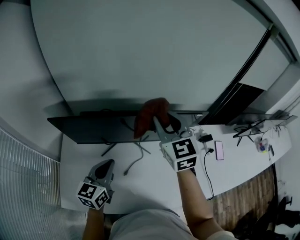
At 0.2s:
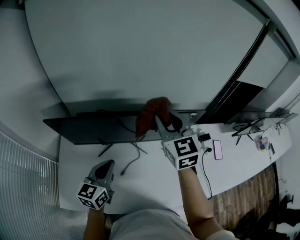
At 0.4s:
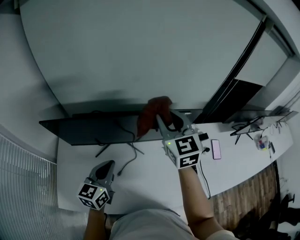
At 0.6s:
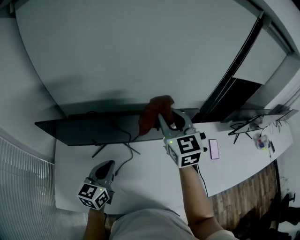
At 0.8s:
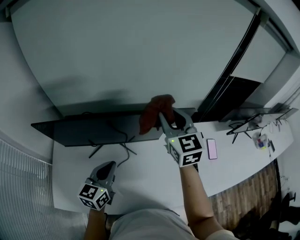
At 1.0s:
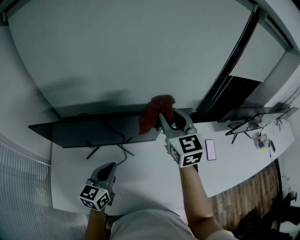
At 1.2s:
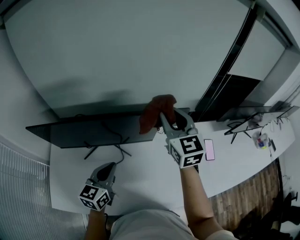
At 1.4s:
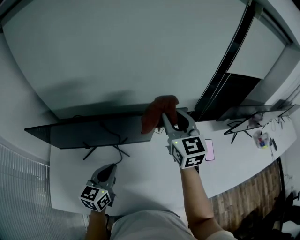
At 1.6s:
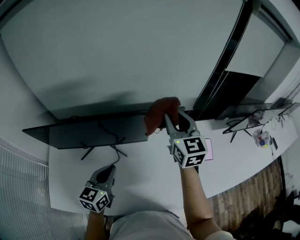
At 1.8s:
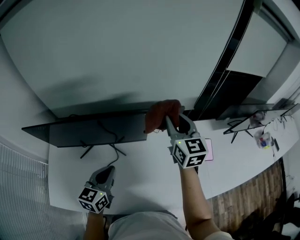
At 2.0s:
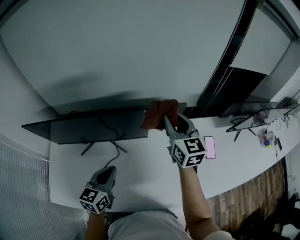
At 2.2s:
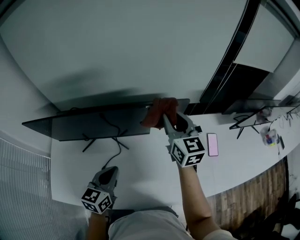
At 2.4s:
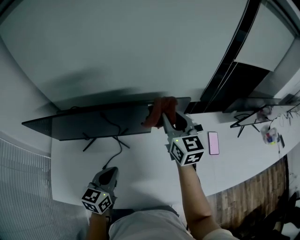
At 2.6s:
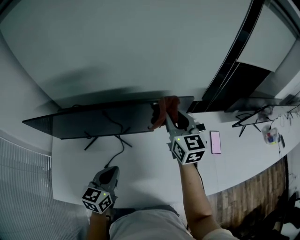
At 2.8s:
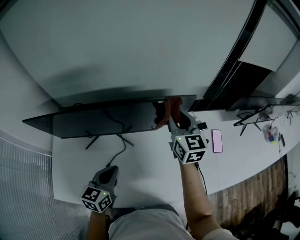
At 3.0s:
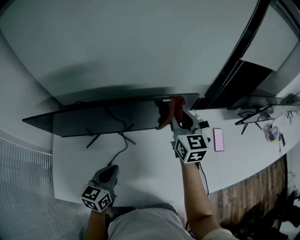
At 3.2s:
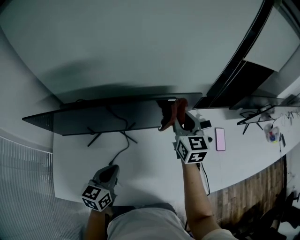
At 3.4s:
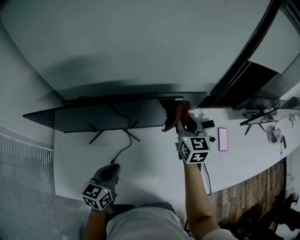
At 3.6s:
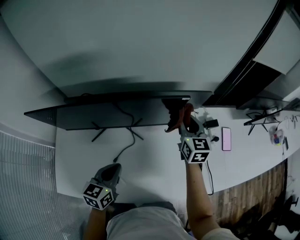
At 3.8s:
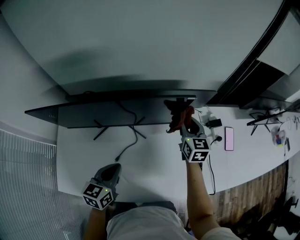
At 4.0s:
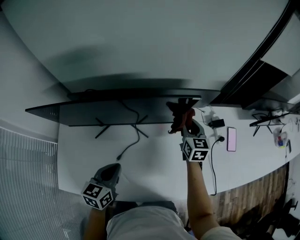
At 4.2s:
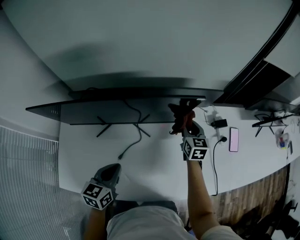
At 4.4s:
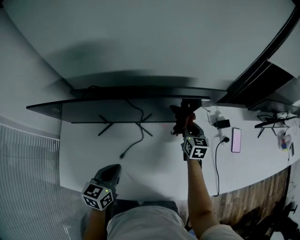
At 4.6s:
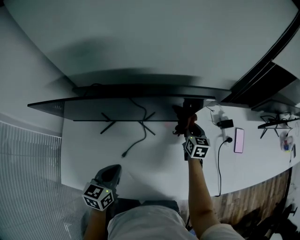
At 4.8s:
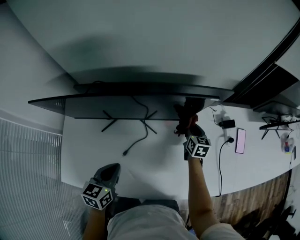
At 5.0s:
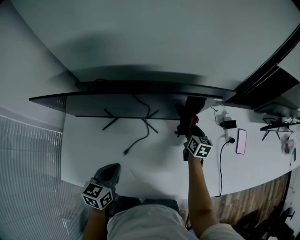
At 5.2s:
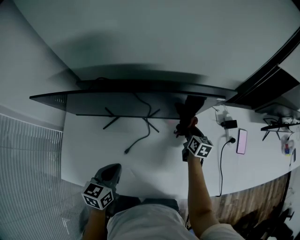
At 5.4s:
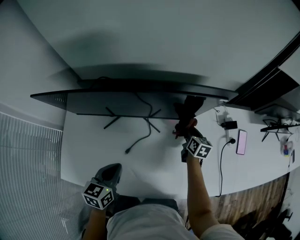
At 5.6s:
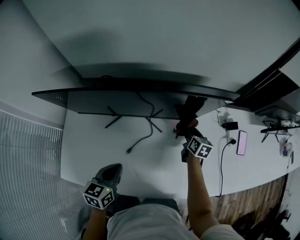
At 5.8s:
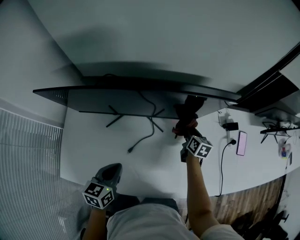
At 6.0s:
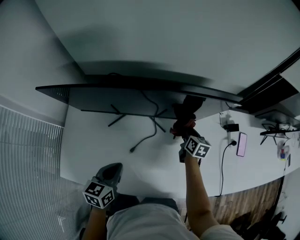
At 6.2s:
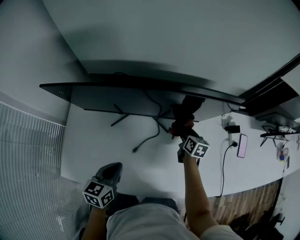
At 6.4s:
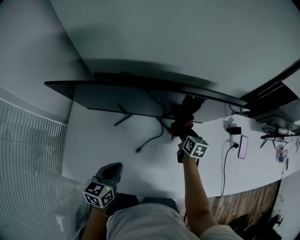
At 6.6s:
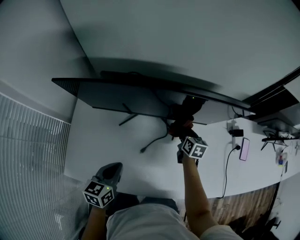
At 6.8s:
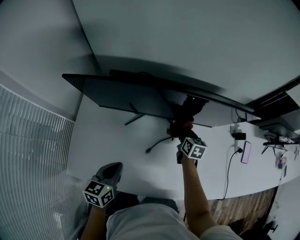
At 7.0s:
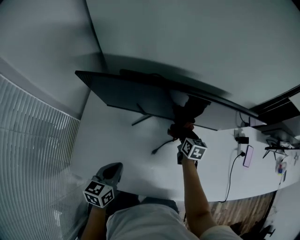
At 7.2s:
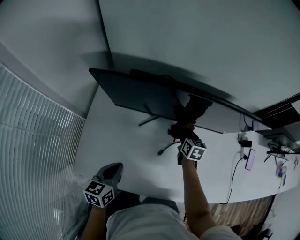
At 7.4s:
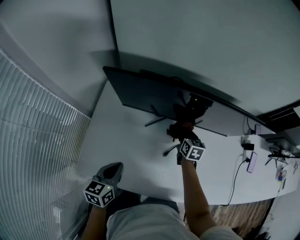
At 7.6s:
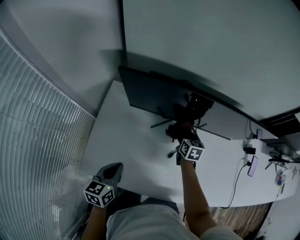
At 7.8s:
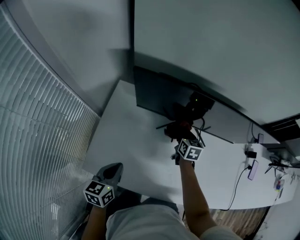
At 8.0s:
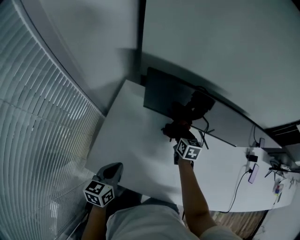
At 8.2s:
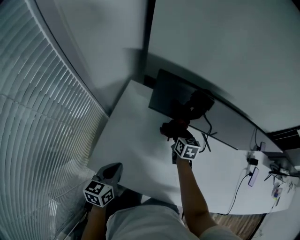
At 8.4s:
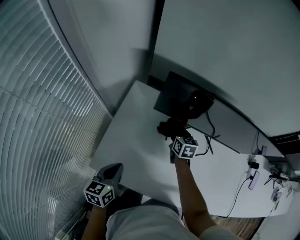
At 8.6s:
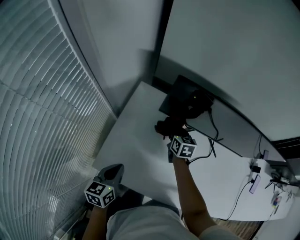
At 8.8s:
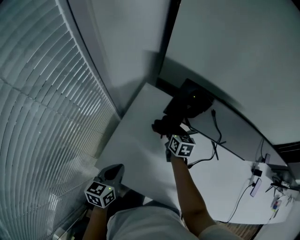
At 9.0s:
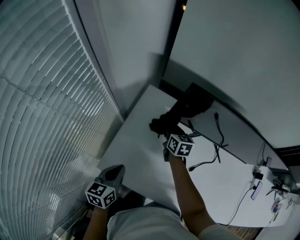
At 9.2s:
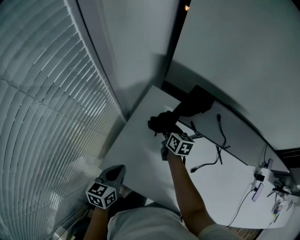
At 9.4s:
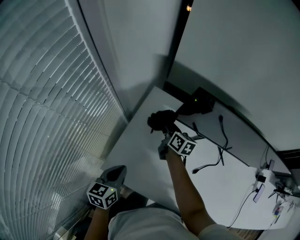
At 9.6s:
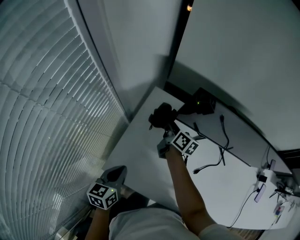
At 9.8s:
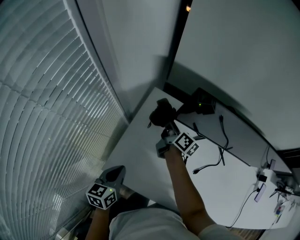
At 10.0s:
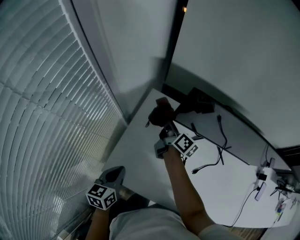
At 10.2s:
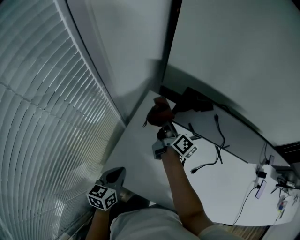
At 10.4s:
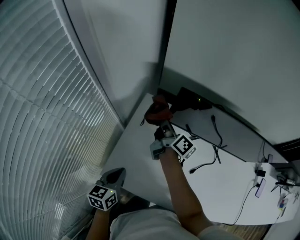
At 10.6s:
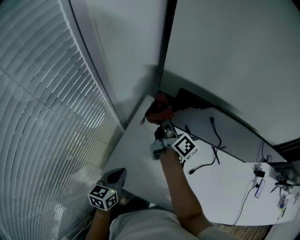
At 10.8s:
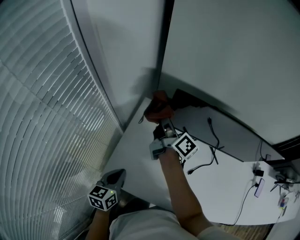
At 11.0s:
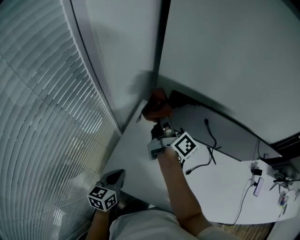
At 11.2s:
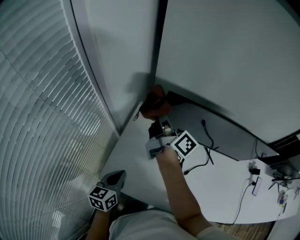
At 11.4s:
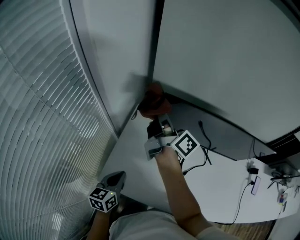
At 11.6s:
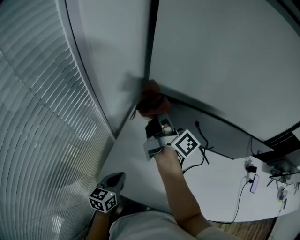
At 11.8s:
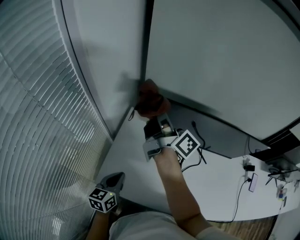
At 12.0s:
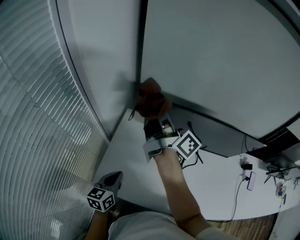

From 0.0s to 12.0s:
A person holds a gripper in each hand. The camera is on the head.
From 0.0s to 1.6s: The two grippers go roughly 20 cm to the right.
From 1.6s to 3.0s: The left gripper is displaced downward by about 5 cm; the right gripper is displaced downward by some 10 cm.
From 3.0s to 4.4s: The left gripper heads to the left, covering about 5 cm. Meanwhile the right gripper shifts about 25 cm downward, and turns by about 20 degrees.
From 4.4s to 6.0s: The left gripper goes roughly 5 cm to the left, while the right gripper shifts about 10 cm to the left and downward.
From 6.0s to 7.6s: Both grippers move to the left, some 25 cm.
From 7.6s to 9.0s: The right gripper heads to the left, covering approximately 25 cm. The left gripper is displaced to the left by roughly 10 cm.
From 9.0s to 10.4s: The right gripper shifts approximately 15 cm upward, and angles its fingers upward, by about 30 degrees.
From 10.4s to 12.0s: The right gripper is displaced upward by roughly 25 cm, and swivels roughly 30 degrees. The left gripper moves to the right, about 5 cm.

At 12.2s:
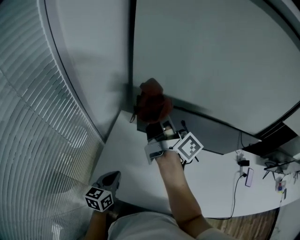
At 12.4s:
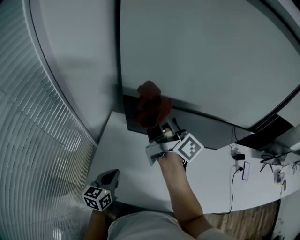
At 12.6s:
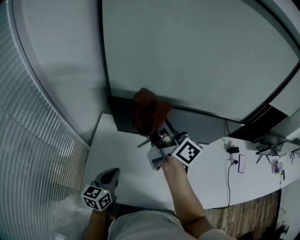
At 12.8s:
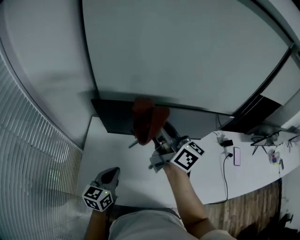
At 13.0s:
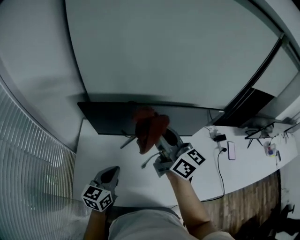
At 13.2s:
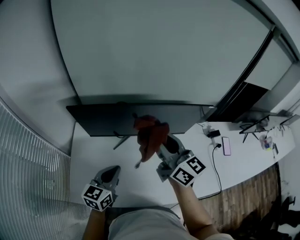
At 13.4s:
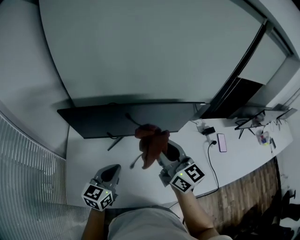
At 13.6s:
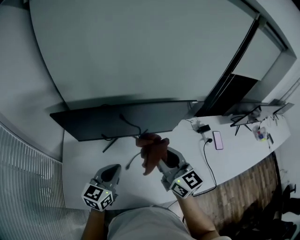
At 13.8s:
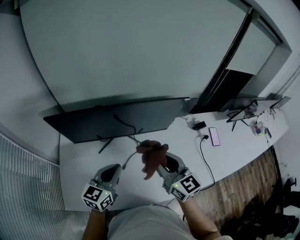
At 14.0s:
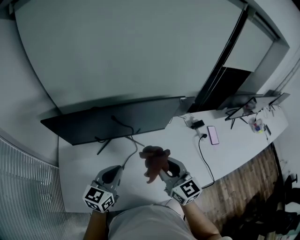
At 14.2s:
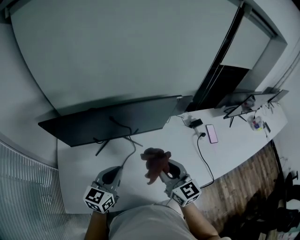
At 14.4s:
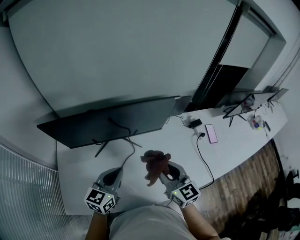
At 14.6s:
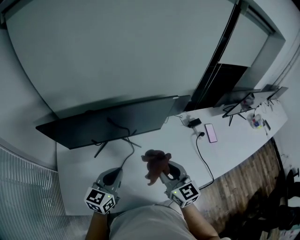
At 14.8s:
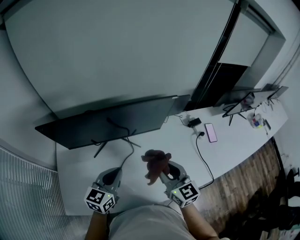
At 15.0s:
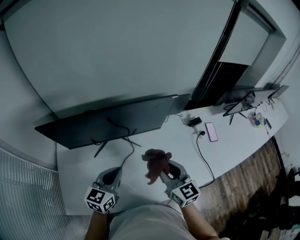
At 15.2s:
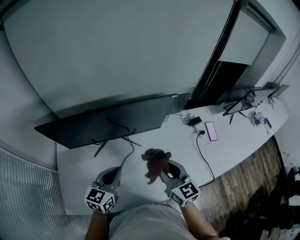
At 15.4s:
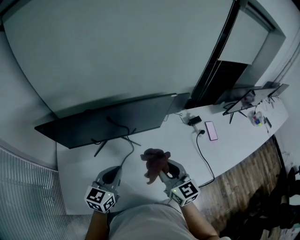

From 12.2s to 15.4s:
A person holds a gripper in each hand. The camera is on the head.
From 12.2s to 13.8s: The left gripper heads to the right, covering roughly 30 cm, and turns by approximately 30 degrees. The right gripper goes approximately 40 cm to the right and backward, and rolls counterclockwise, seen from behind, by about 60 degrees.
From 13.8s to 15.4s: The right gripper heads to the right, covering roughly 5 cm.

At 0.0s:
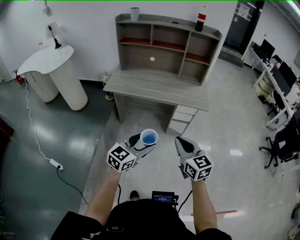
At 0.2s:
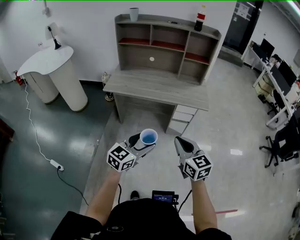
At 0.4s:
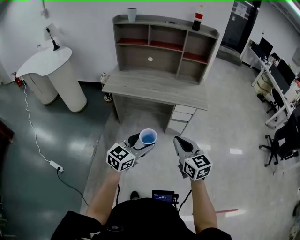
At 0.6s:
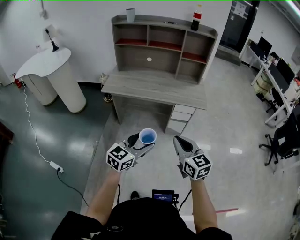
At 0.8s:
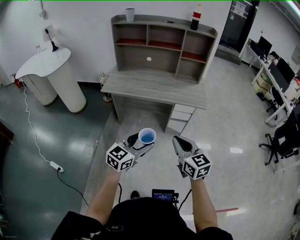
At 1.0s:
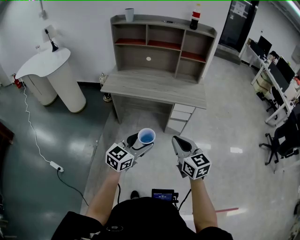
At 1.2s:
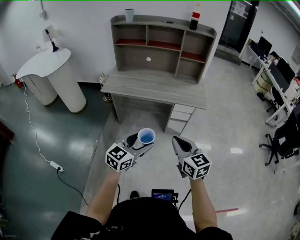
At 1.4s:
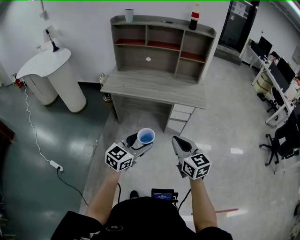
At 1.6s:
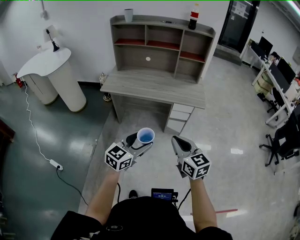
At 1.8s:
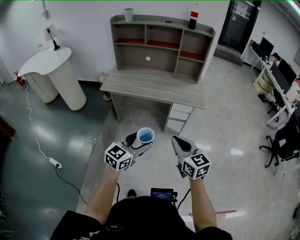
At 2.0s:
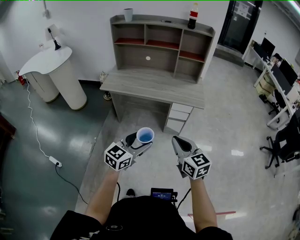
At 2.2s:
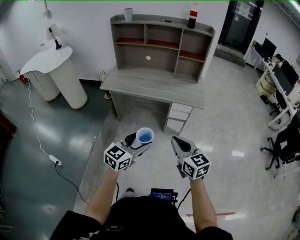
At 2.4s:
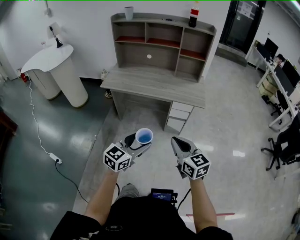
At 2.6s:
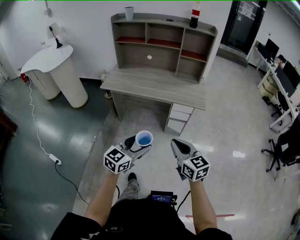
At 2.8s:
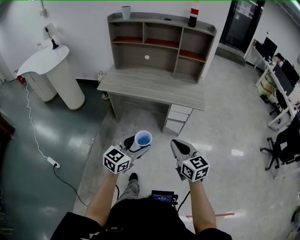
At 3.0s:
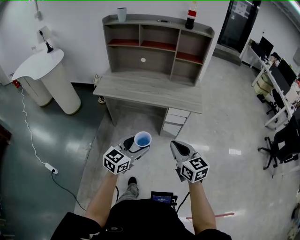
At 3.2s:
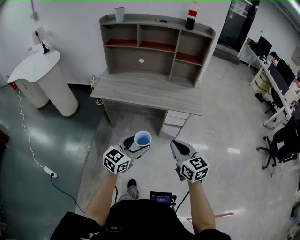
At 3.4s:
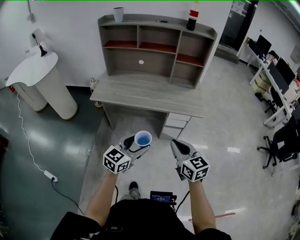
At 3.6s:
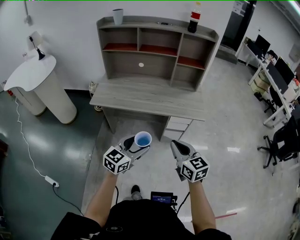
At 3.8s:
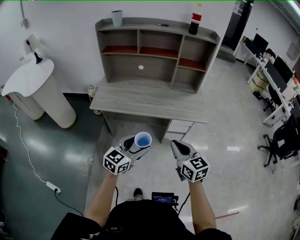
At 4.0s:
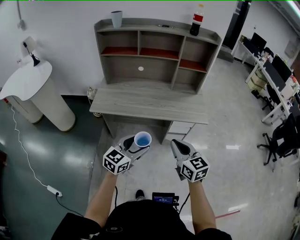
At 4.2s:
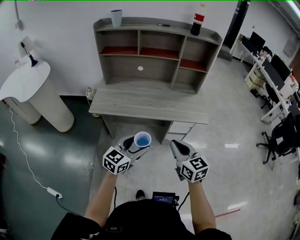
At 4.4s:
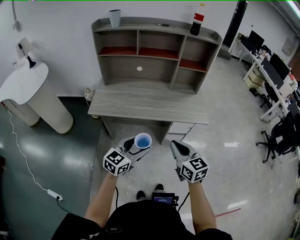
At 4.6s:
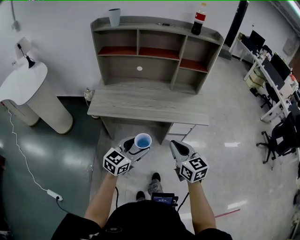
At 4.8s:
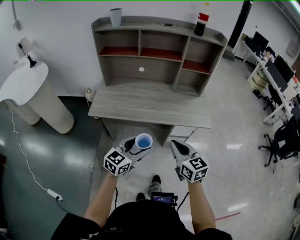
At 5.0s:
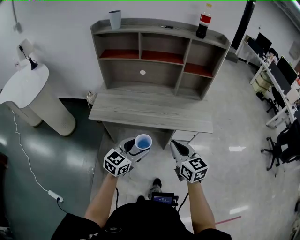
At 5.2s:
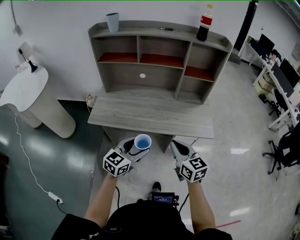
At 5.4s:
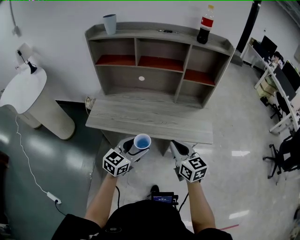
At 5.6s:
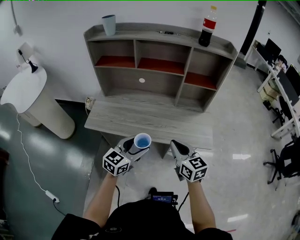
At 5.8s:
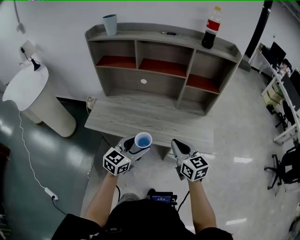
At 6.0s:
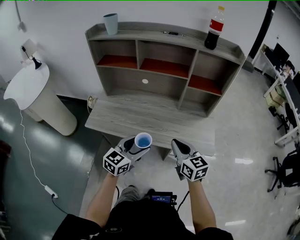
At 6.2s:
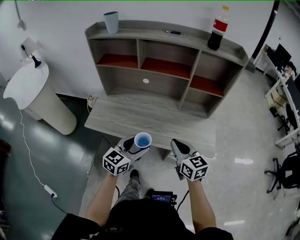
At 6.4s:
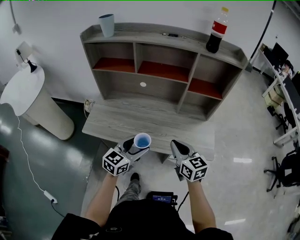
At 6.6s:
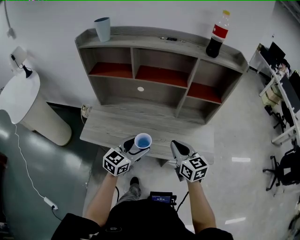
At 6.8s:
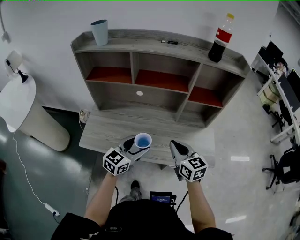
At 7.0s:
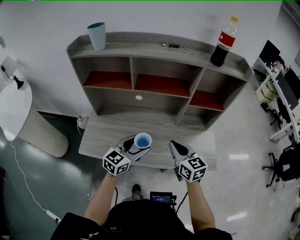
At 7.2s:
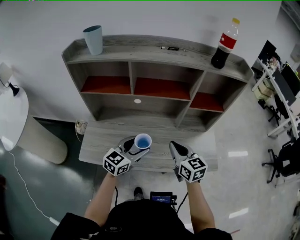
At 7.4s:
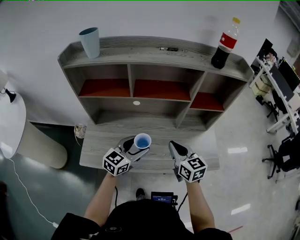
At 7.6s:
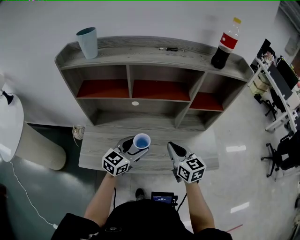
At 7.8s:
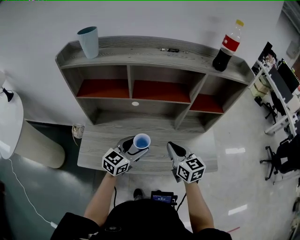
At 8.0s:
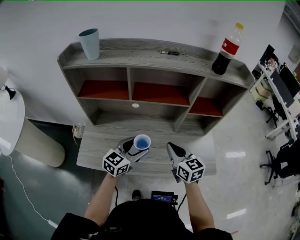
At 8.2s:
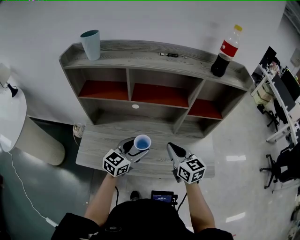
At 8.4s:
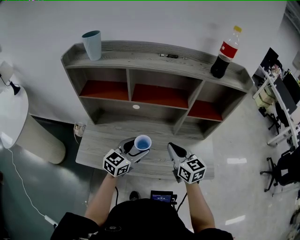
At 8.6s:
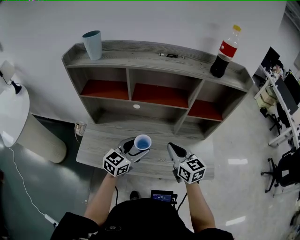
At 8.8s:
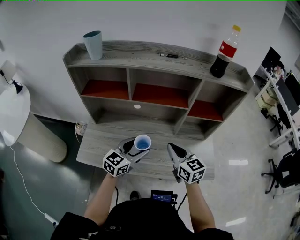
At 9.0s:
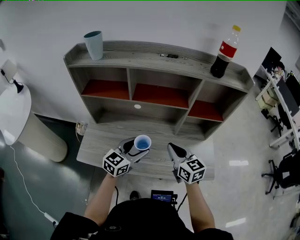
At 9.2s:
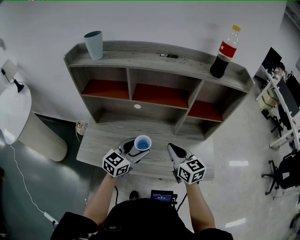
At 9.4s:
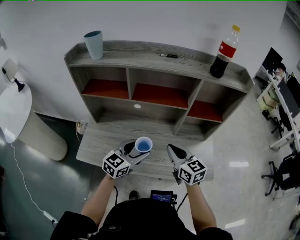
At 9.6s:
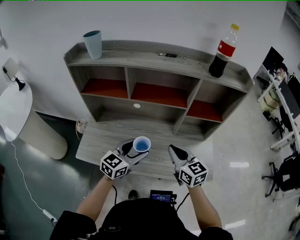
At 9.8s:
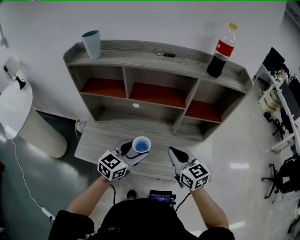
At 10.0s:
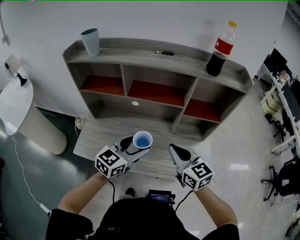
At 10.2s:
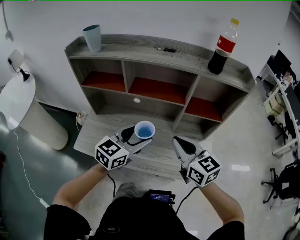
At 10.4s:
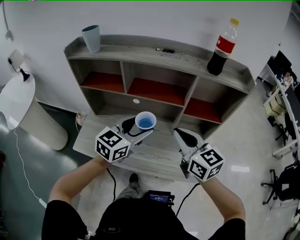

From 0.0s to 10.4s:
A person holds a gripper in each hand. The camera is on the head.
From 0.0s to 1.4s: The grippers move only a little.
From 1.4s to 3.0s: Both grippers move forward, approximately 5 cm.
From 3.0s to 4.4s: Both grippers move forward and to the left, some 20 cm.
From 4.4s to 6.0s: The grippers both shift forward by some 20 cm.
From 6.0s to 7.4s: Both grippers move forward and to the left, about 20 cm.
From 7.4s to 9.0s: There are only small adjustments of the grippers.
From 9.0s to 10.4s: The left gripper heads upward and to the right, covering roughly 15 cm; the right gripper travels upward by roughly 15 cm.
